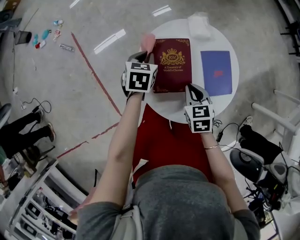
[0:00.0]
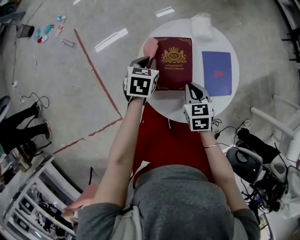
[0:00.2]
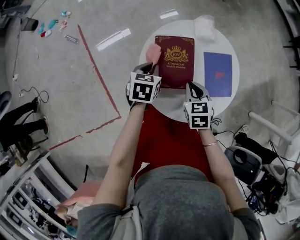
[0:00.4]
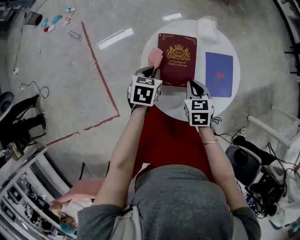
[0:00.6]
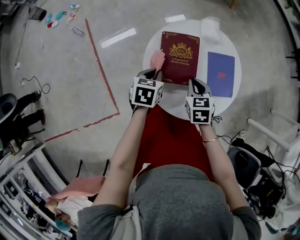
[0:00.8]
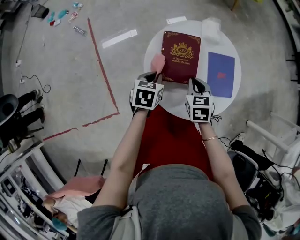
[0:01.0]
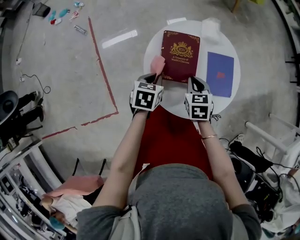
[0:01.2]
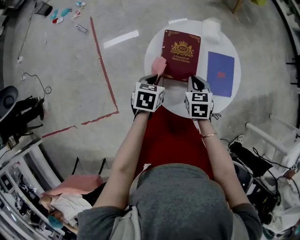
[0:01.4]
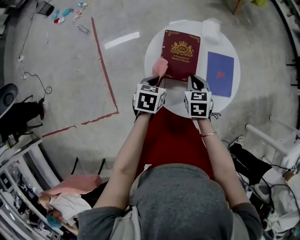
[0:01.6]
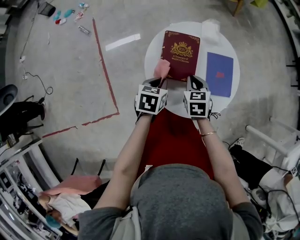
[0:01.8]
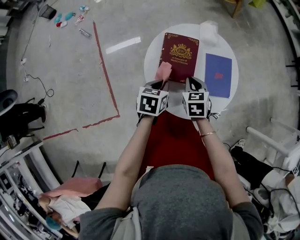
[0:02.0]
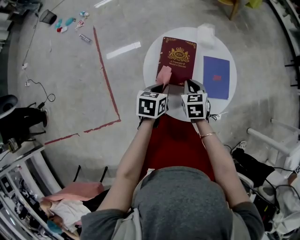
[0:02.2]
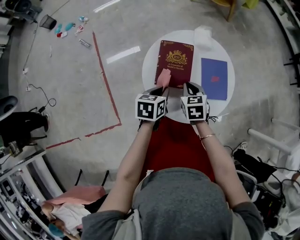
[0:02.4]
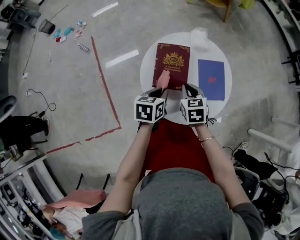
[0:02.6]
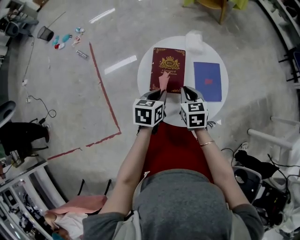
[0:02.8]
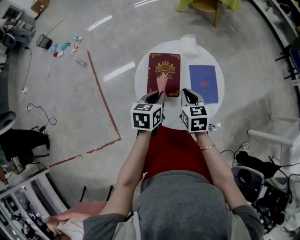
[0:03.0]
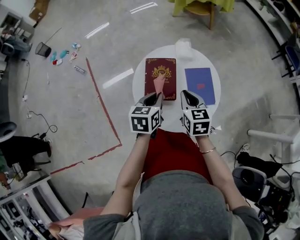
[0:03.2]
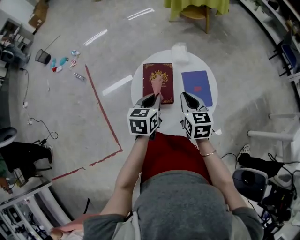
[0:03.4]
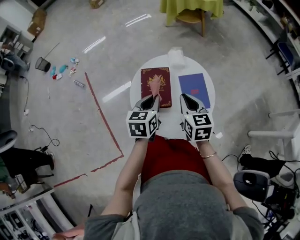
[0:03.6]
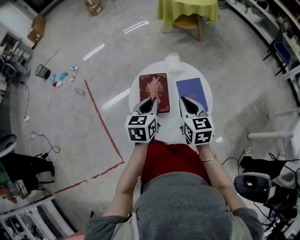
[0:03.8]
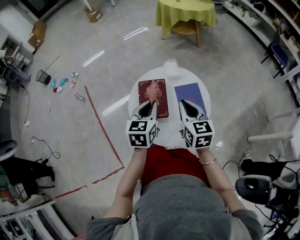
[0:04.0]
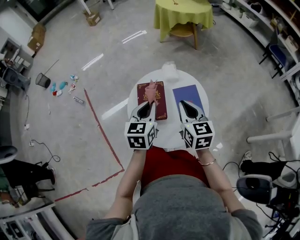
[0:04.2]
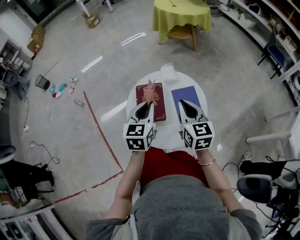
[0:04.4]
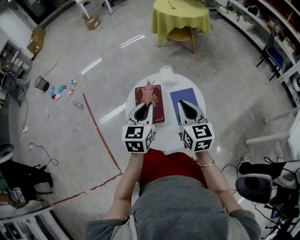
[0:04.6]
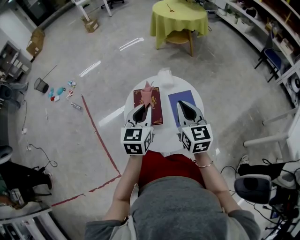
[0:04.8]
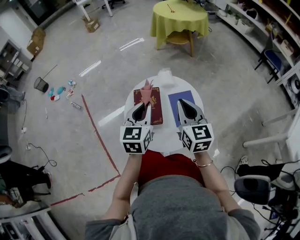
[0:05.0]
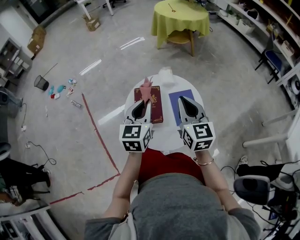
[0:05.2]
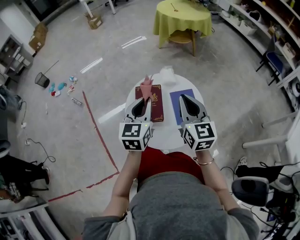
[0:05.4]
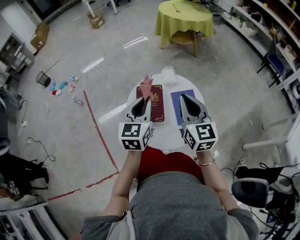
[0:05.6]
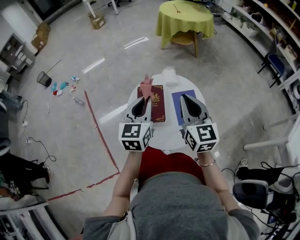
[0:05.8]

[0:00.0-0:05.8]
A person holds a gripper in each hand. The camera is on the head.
0:00.0 to 0:01.4: The left gripper heads backward, covering some 15 cm.
0:01.4 to 0:02.8: The left gripper goes some 10 cm upward and to the right.
0:02.8 to 0:04.4: The left gripper is displaced upward by approximately 15 cm, and rotates about 30 degrees. Meanwhile the right gripper moves upward and to the right, about 20 cm, and turns by approximately 30 degrees.
0:04.4 to 0:05.8: The grippers both shift upward by about 5 cm.

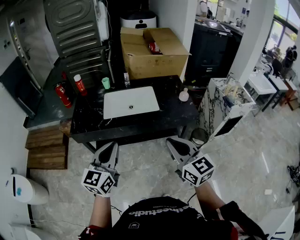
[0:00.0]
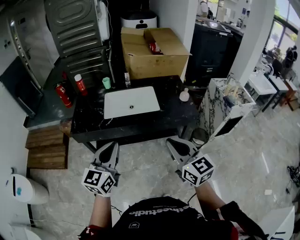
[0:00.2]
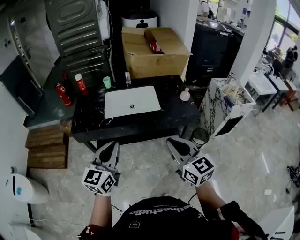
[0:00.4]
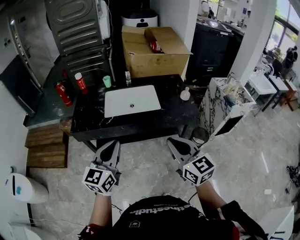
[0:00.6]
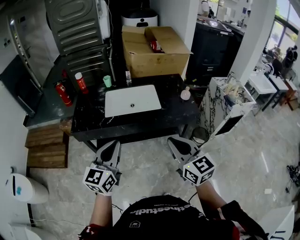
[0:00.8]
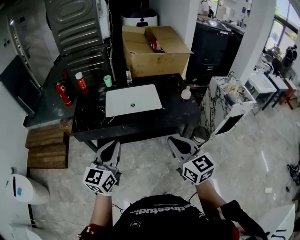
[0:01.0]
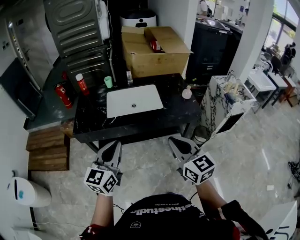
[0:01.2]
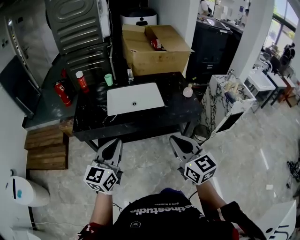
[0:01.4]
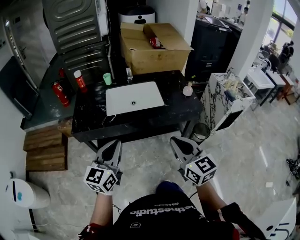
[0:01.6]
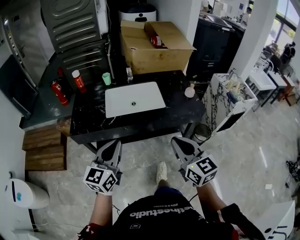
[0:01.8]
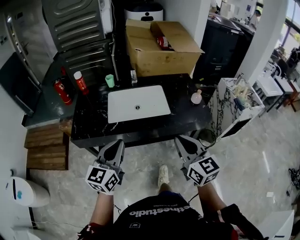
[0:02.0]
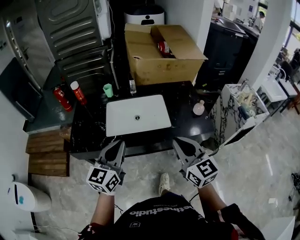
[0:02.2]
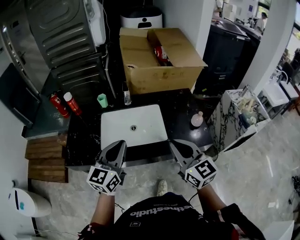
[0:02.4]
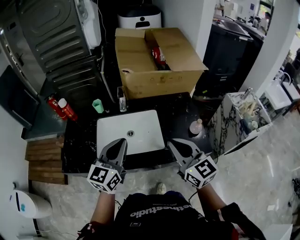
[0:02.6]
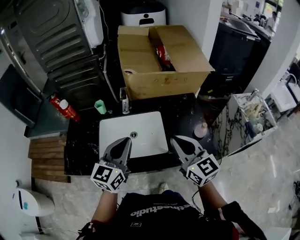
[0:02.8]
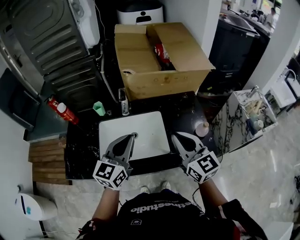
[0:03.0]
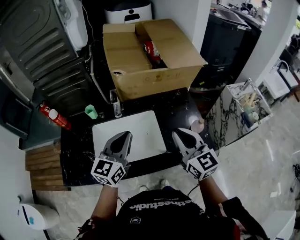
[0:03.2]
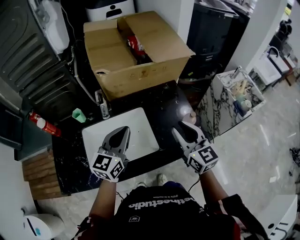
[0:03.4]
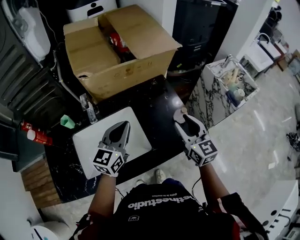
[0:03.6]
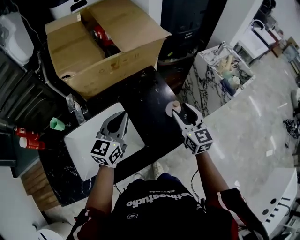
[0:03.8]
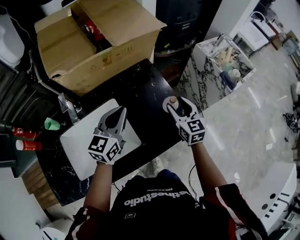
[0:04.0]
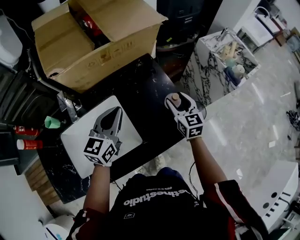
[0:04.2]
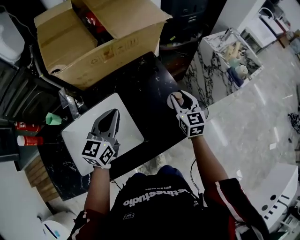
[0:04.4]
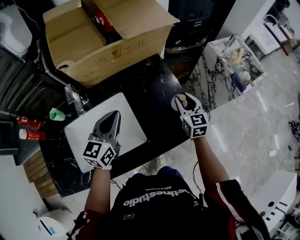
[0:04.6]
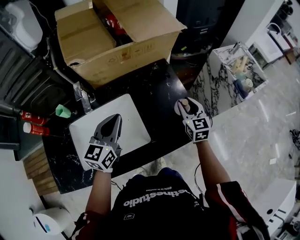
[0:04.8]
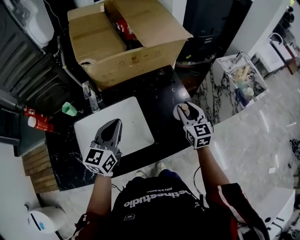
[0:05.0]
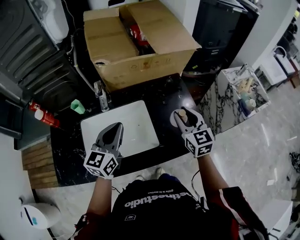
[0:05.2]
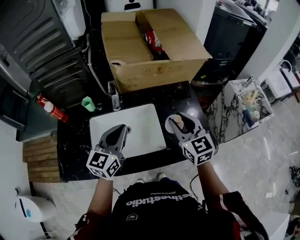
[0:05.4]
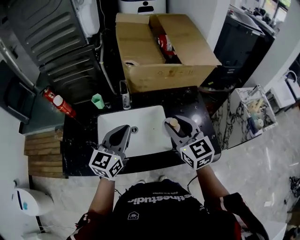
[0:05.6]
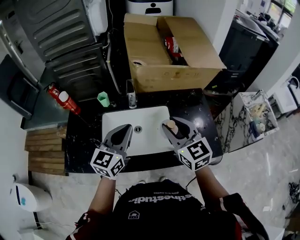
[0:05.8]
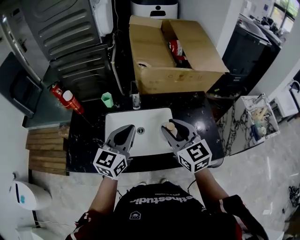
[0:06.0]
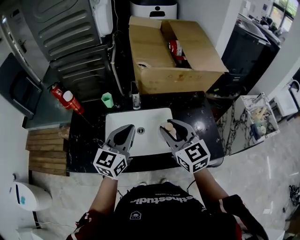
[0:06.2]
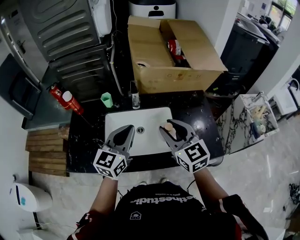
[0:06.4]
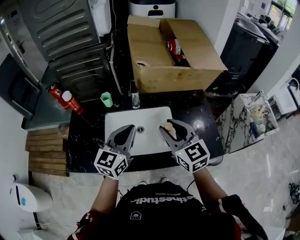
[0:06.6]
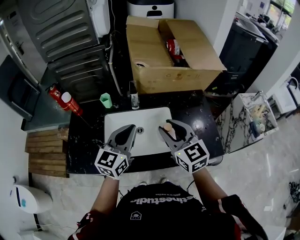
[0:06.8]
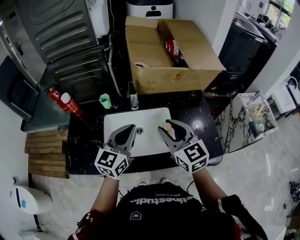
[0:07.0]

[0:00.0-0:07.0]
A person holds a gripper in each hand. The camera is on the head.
0:00.0 to 0:01.4: The grippers stay close to where they were, moving slightly.
0:01.4 to 0:02.8: The pair of grippers is taken forward, about 40 cm.
0:02.8 to 0:04.2: The left gripper shifts by some 25 cm, and changes its angle by some 20 degrees; the right gripper moves roughly 35 cm, rotates approximately 40 degrees, and opens.
0:04.2 to 0:05.6: The right gripper is displaced to the left, upward and backward by some 35 cm, and rotates approximately 30 degrees; the left gripper goes approximately 25 cm to the left, backward and upward, and swivels approximately 20 degrees.
0:05.6 to 0:07.0: The right gripper travels to the left by approximately 5 cm.

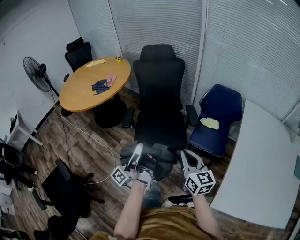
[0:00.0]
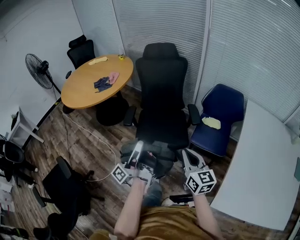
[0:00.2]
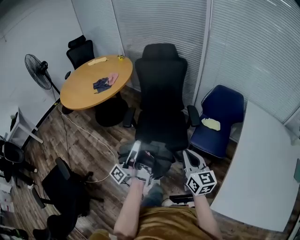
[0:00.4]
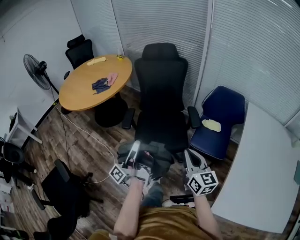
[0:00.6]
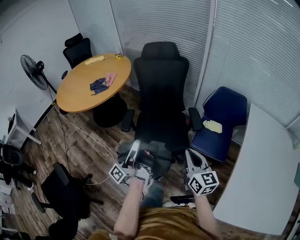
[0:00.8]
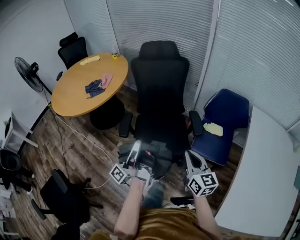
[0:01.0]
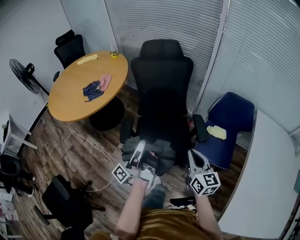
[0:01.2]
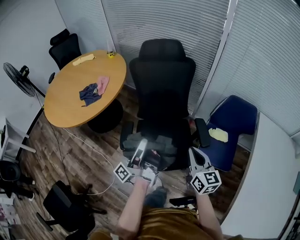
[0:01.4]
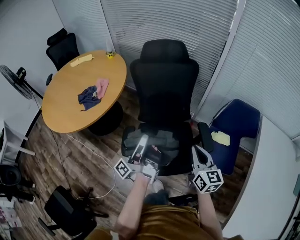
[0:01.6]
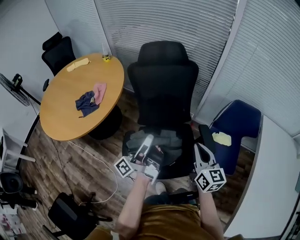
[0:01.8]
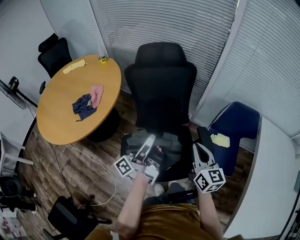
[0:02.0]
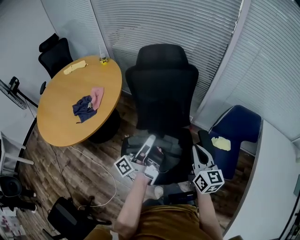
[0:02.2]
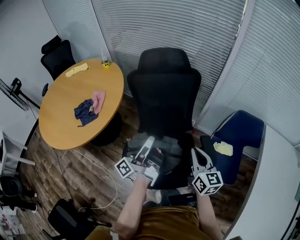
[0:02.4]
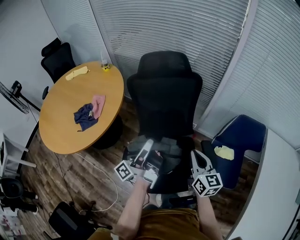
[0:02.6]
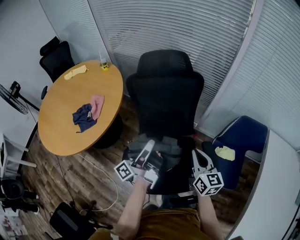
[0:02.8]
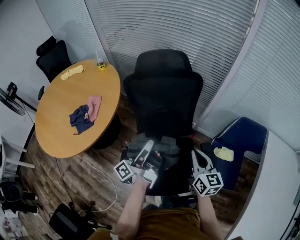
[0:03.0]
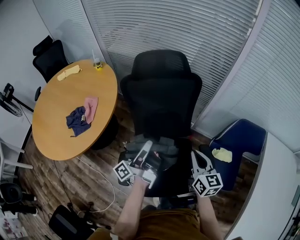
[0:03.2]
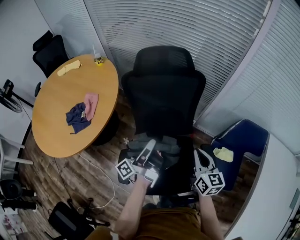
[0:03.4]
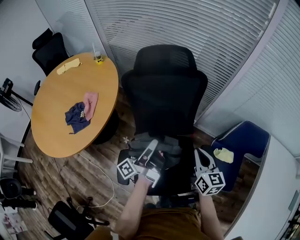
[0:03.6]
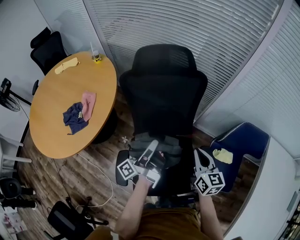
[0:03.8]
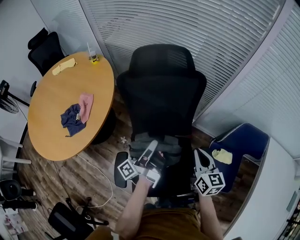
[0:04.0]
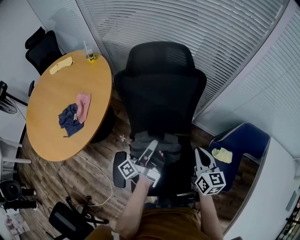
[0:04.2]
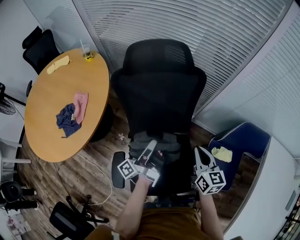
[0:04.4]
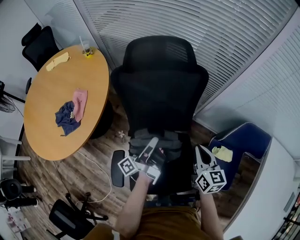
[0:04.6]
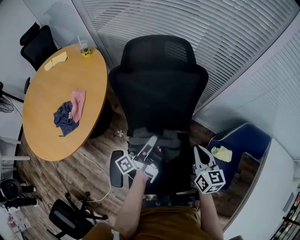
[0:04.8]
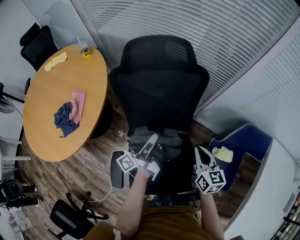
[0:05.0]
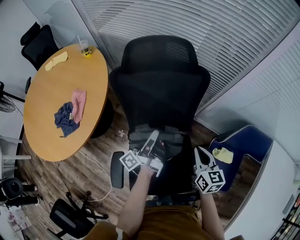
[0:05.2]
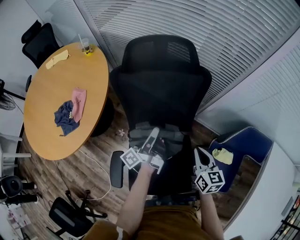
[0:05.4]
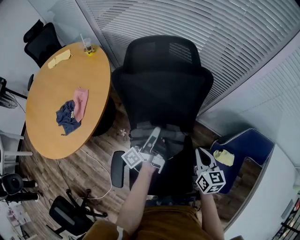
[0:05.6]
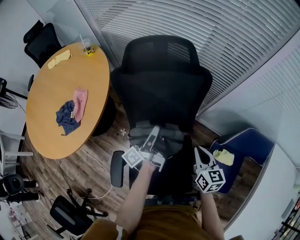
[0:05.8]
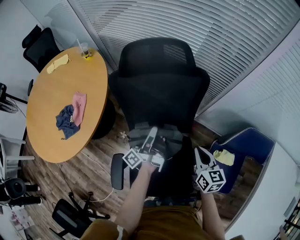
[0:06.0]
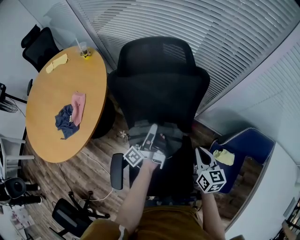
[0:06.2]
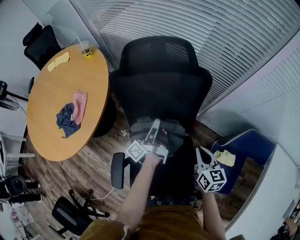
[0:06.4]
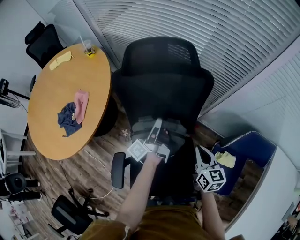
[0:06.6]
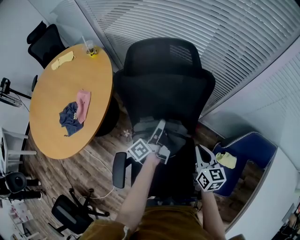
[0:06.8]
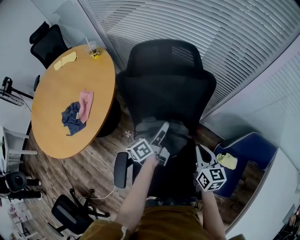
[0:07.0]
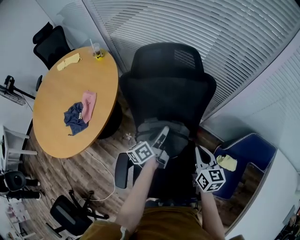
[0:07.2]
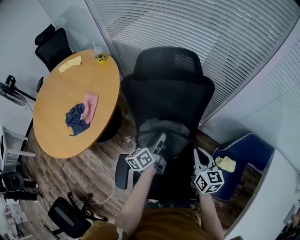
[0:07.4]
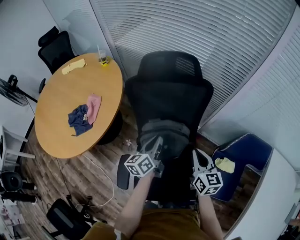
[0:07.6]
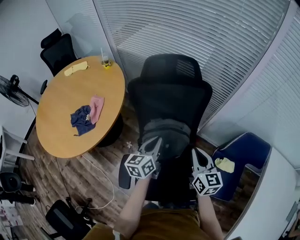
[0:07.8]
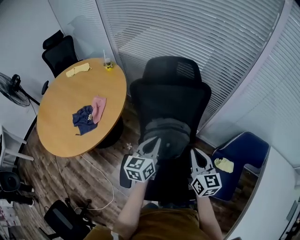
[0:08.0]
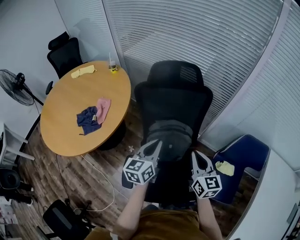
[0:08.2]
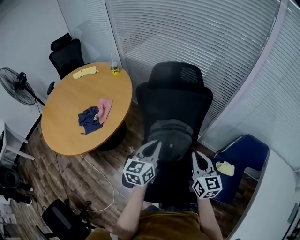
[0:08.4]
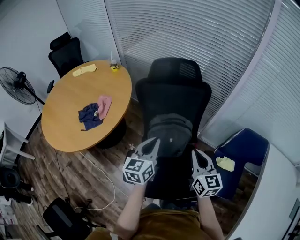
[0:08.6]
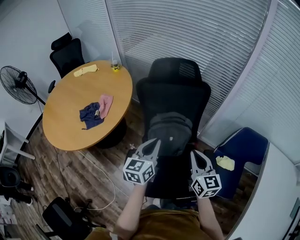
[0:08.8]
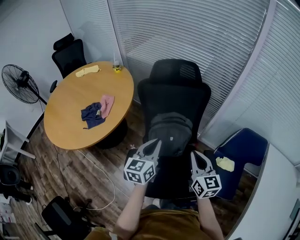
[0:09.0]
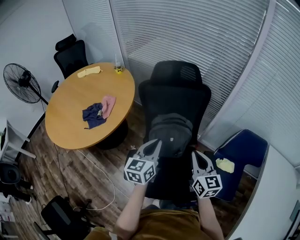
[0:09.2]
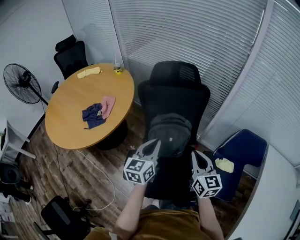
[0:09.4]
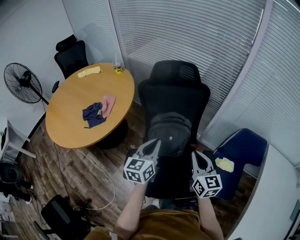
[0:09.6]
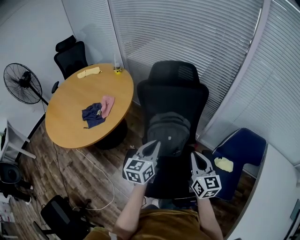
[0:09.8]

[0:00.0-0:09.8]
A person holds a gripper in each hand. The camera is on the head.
0:00.0 to 0:01.4: The right gripper shifts by some 30 cm.
0:01.4 to 0:02.8: The right gripper shifts by approximately 20 cm.
0:02.8 to 0:04.2: The right gripper shifts by some 10 cm.
0:04.2 to 0:05.6: The right gripper travels downward by about 5 cm.
0:07.0 to 0:08.4: The right gripper ends up roughly 20 cm from where it was.
0:08.4 to 0:09.8: The right gripper moves approximately 5 cm.

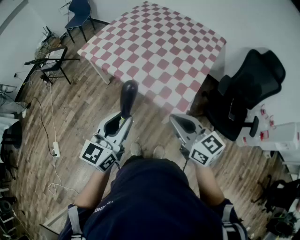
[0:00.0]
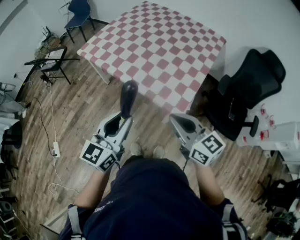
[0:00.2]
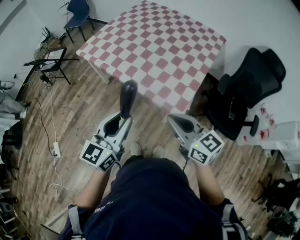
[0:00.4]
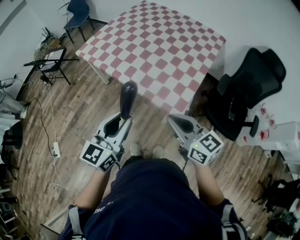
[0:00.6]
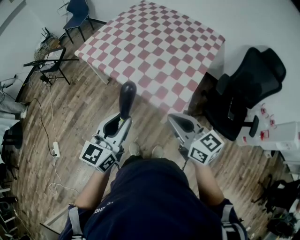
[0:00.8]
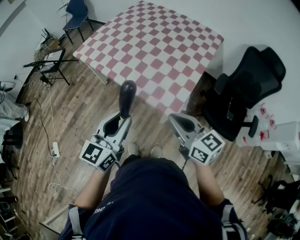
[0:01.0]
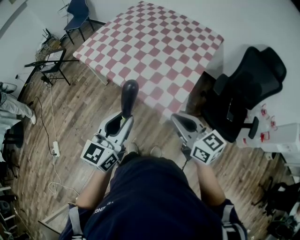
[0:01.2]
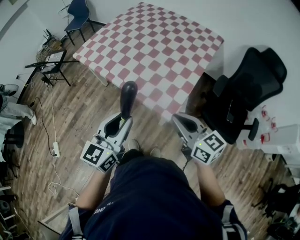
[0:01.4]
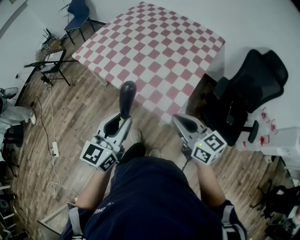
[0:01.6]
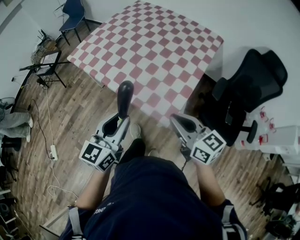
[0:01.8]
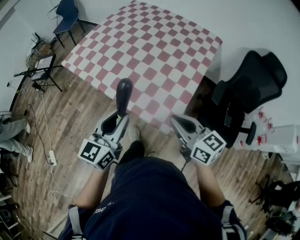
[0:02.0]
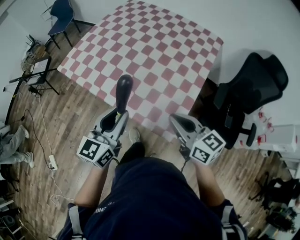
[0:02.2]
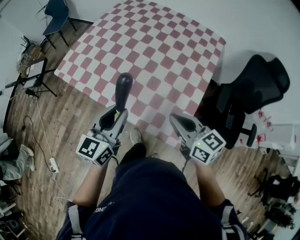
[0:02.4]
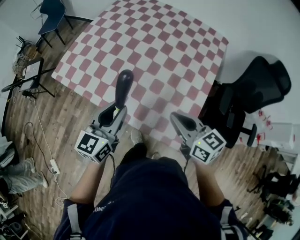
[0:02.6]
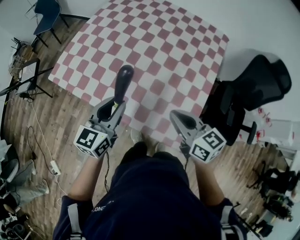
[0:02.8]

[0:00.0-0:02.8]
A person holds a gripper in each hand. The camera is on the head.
0:00.0 to 0:01.4: The grippers both shift to the right by roughly 10 cm.
0:01.4 to 0:02.8: Both grippers move forward, approximately 30 cm.
